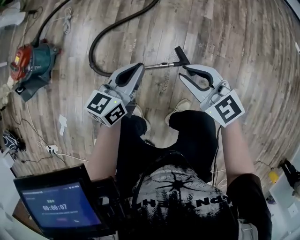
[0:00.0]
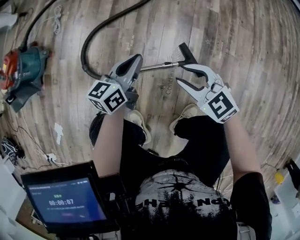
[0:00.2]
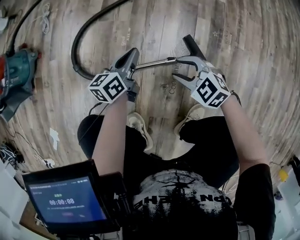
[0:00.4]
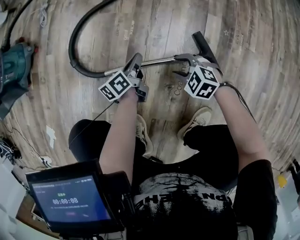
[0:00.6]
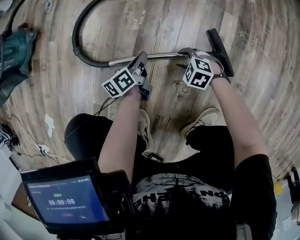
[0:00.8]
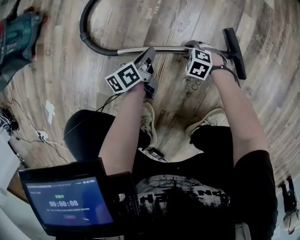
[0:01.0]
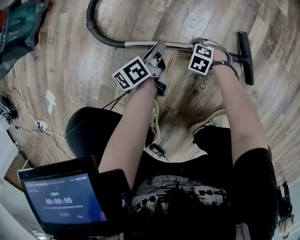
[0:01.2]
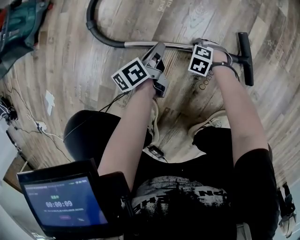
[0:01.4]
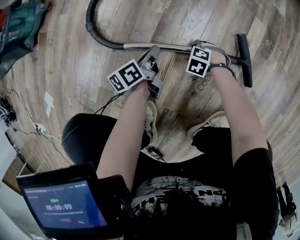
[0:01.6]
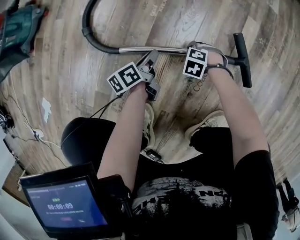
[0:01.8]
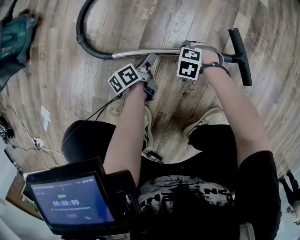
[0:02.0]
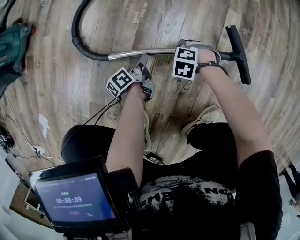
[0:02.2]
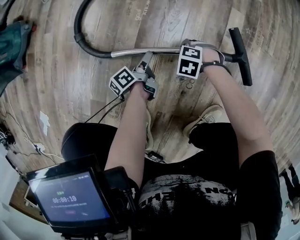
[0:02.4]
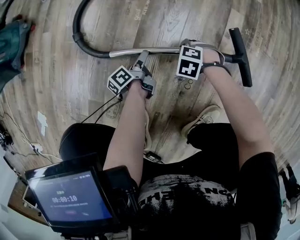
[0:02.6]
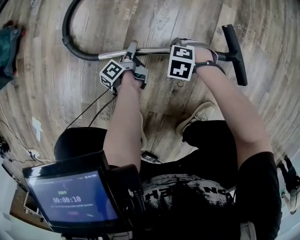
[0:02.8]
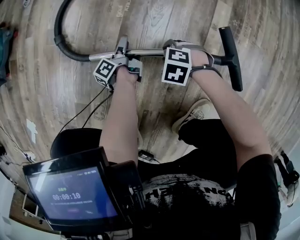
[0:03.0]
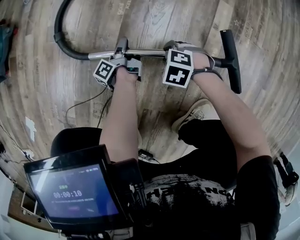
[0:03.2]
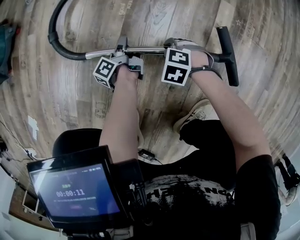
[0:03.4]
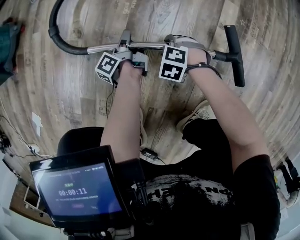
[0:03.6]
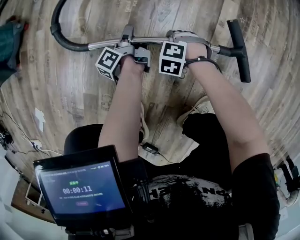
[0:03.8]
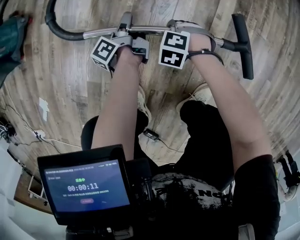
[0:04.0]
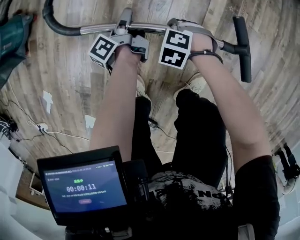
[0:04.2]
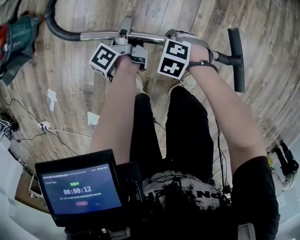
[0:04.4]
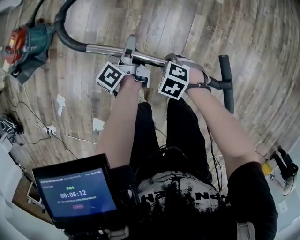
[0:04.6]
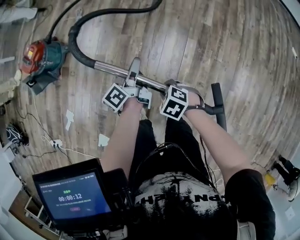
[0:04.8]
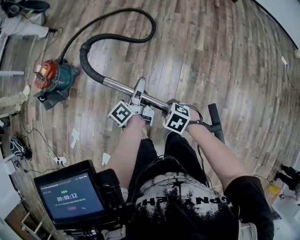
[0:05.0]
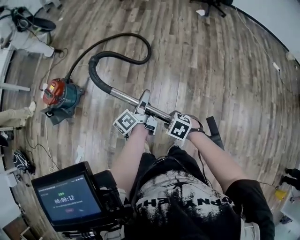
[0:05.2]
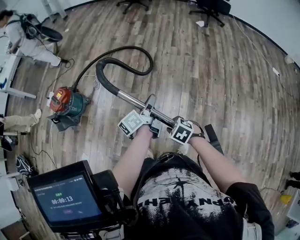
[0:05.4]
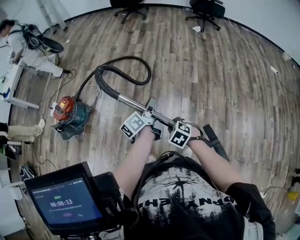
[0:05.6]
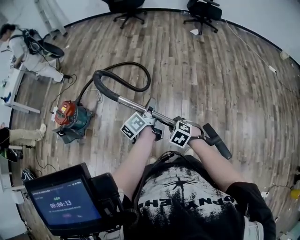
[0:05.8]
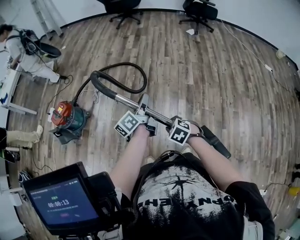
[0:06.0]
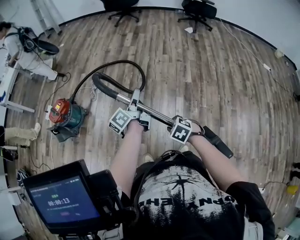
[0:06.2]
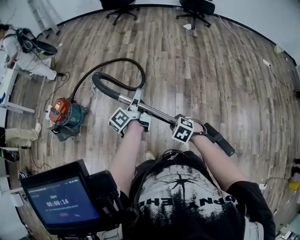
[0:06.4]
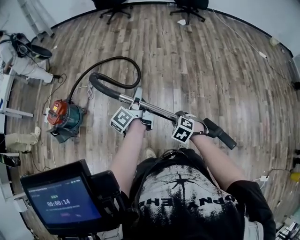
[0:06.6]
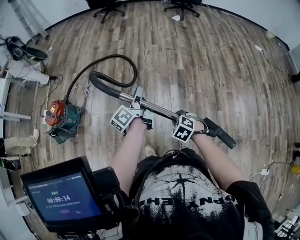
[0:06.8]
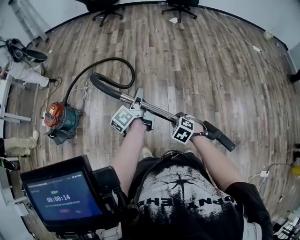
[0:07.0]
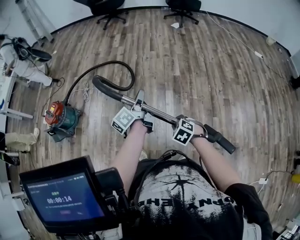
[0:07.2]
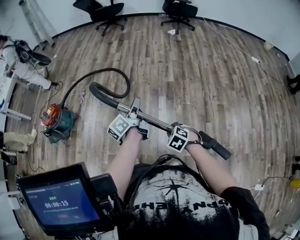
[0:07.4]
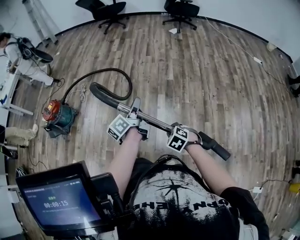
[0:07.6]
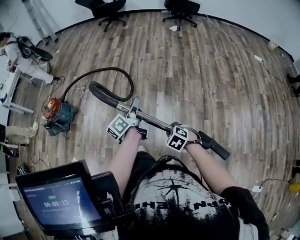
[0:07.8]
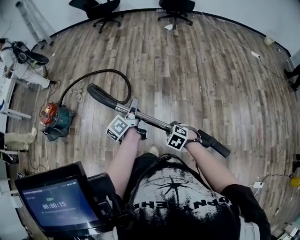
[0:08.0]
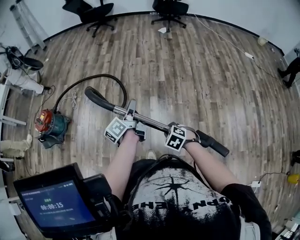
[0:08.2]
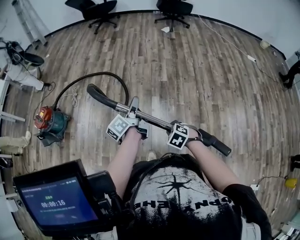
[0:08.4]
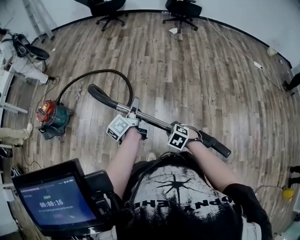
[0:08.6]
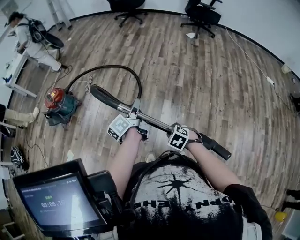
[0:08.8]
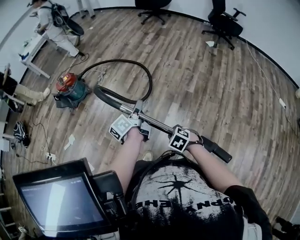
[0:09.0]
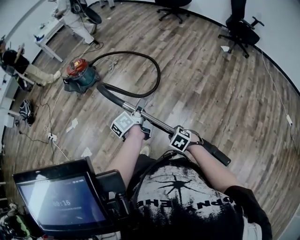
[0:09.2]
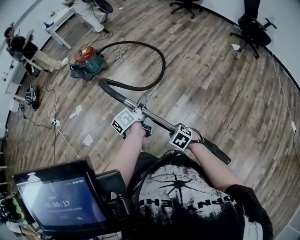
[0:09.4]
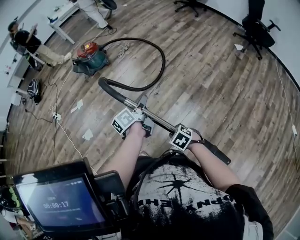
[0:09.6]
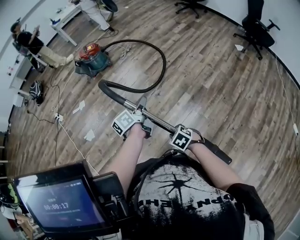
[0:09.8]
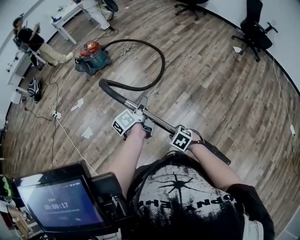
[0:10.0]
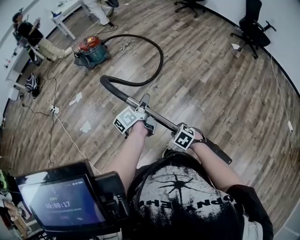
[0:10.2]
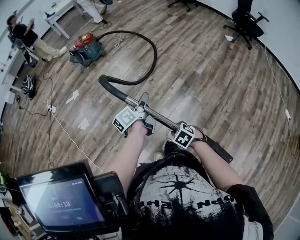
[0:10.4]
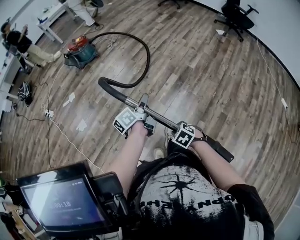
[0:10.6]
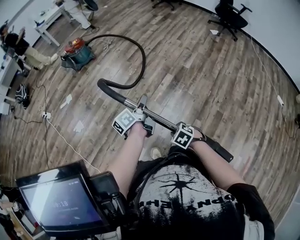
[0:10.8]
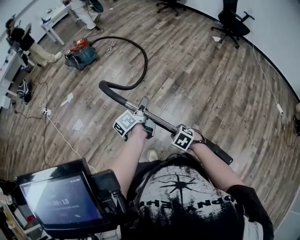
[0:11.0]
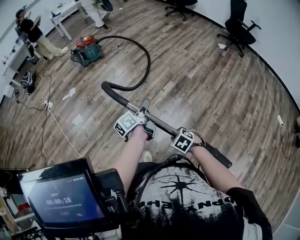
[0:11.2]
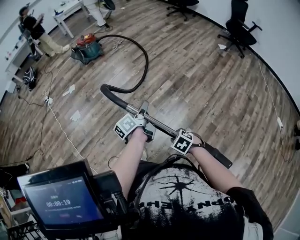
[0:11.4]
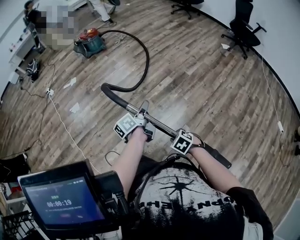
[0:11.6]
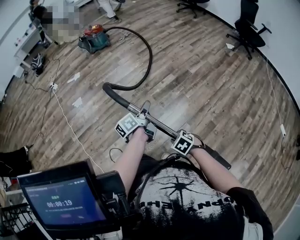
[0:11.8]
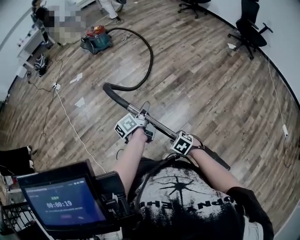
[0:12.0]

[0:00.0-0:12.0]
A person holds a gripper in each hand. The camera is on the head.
0:00.0 to 0:01.6: Both grippers travel together downward, approximately 60 cm. The left gripper twists about 50 degrees counterclockwise, seen from behind; the right gripper angles its fingers downward, by approximately 60 degrees, and opens.
0:01.6 to 0:03.0: The left gripper heads downward, covering about 10 cm, turns by some 40 degrees, and opens; the right gripper shifts roughly 10 cm upward.
0:03.0 to 0:04.4: Both grippers travel together upward, roughly 30 cm. The right gripper closes up. The left gripper closes its fingers.
0:04.4 to 0:06.0: Both grippers travel together upward, roughly 50 cm. The left gripper swivels roughly 30 degrees; the right gripper rotates roughly 30 degrees.
0:06.0 to 0:07.6: Both grippers move to the right and backward, about 25 cm.
0:07.6 to 0:09.0: The right gripper ends up some 10 cm from where it was, and changes its angle by roughly 20 degrees. Meanwhile the left gripper turns by roughly 20 degrees.
0:09.0 to 0:10.4: Both grippers travel together backward, some 25 cm.
0:10.4 to 0:12.0: The left gripper shifts approximately 30 cm backward. Meanwhile the right gripper is displaced backward and to the right by roughly 30 cm.

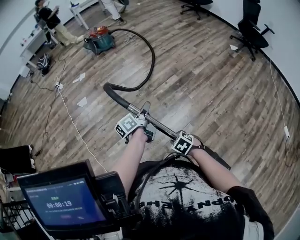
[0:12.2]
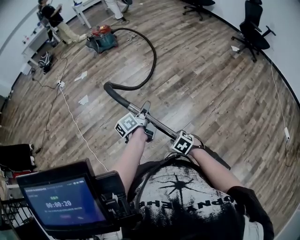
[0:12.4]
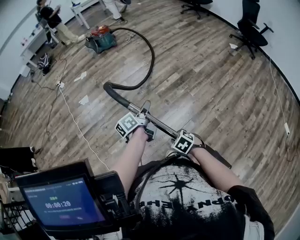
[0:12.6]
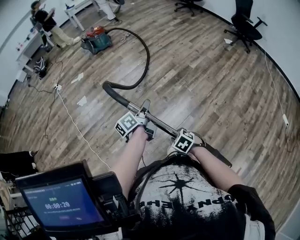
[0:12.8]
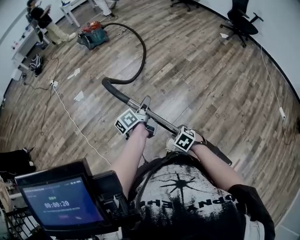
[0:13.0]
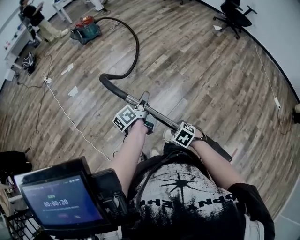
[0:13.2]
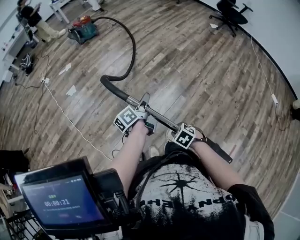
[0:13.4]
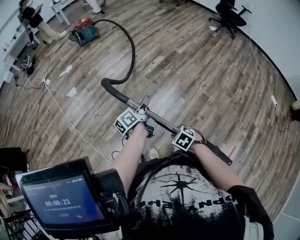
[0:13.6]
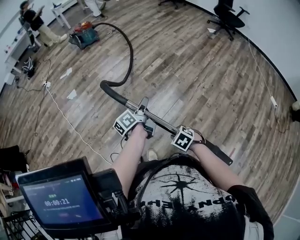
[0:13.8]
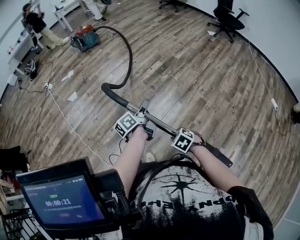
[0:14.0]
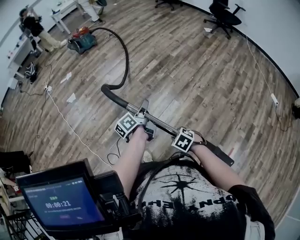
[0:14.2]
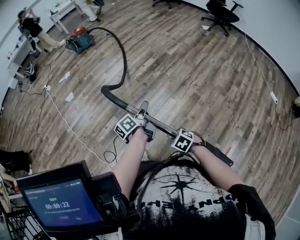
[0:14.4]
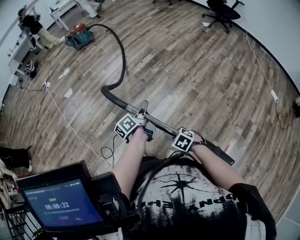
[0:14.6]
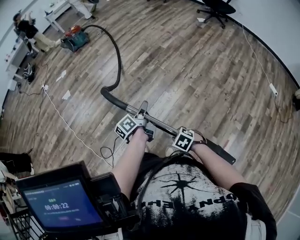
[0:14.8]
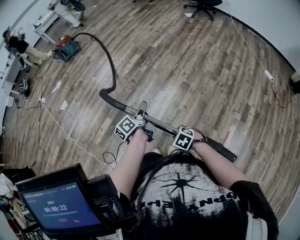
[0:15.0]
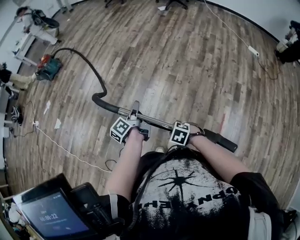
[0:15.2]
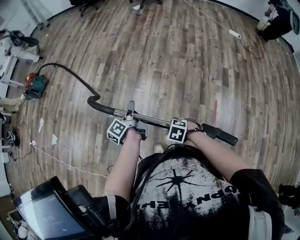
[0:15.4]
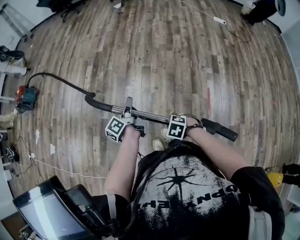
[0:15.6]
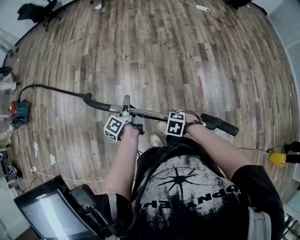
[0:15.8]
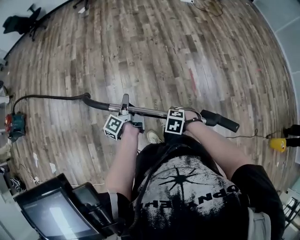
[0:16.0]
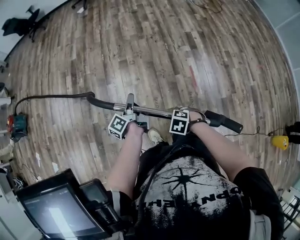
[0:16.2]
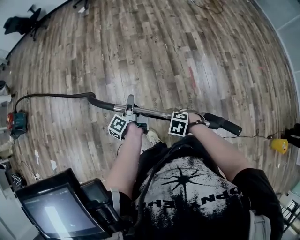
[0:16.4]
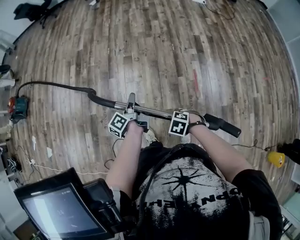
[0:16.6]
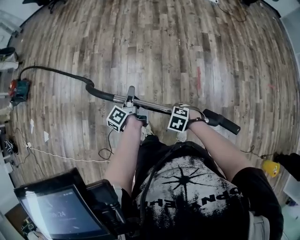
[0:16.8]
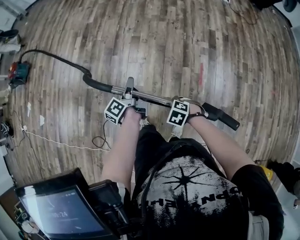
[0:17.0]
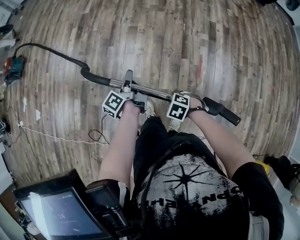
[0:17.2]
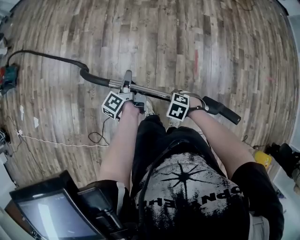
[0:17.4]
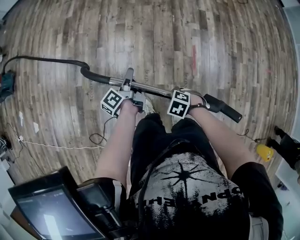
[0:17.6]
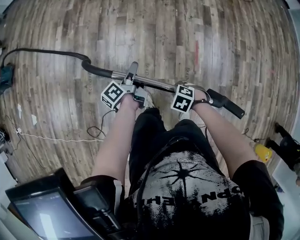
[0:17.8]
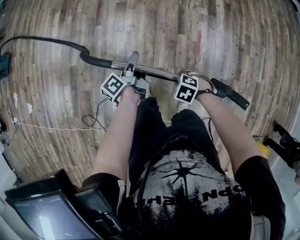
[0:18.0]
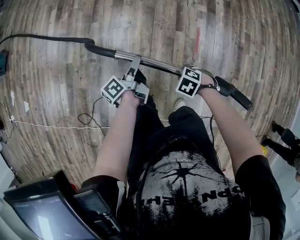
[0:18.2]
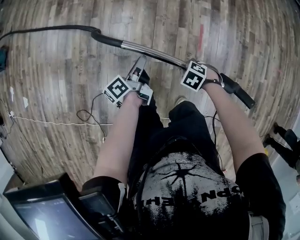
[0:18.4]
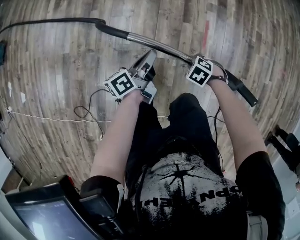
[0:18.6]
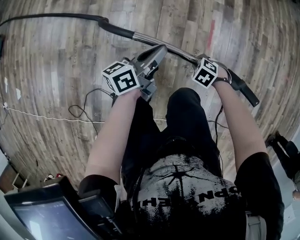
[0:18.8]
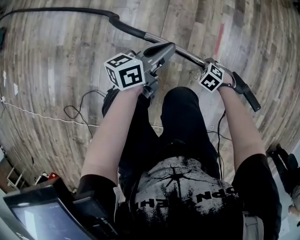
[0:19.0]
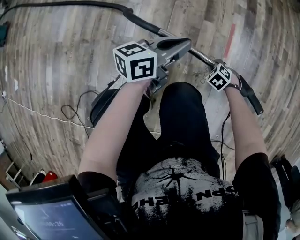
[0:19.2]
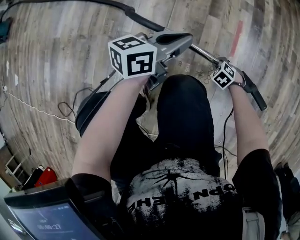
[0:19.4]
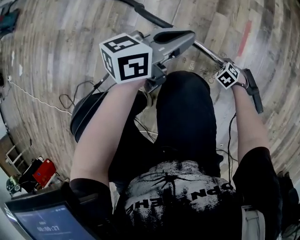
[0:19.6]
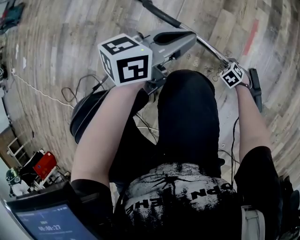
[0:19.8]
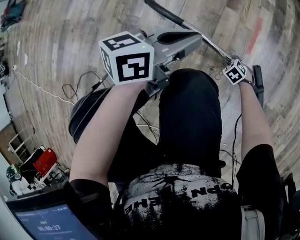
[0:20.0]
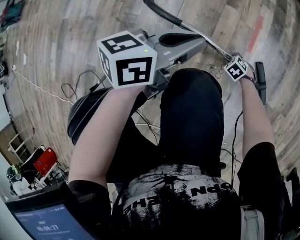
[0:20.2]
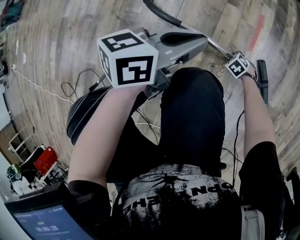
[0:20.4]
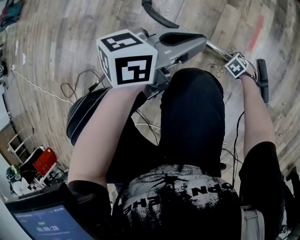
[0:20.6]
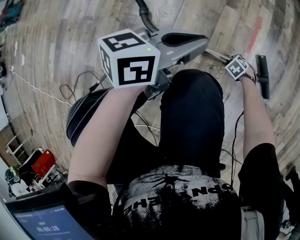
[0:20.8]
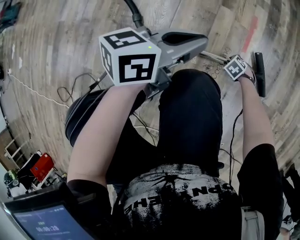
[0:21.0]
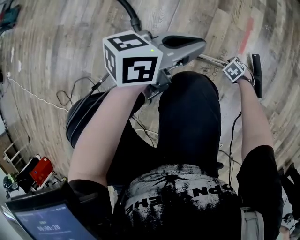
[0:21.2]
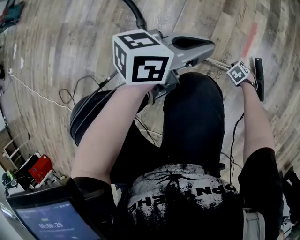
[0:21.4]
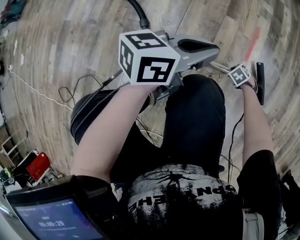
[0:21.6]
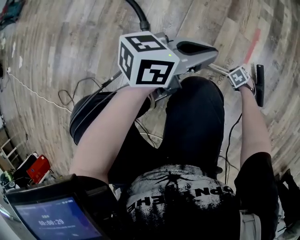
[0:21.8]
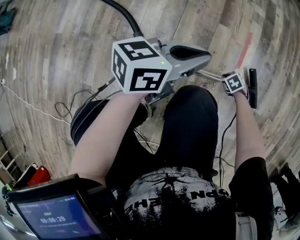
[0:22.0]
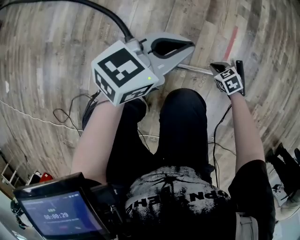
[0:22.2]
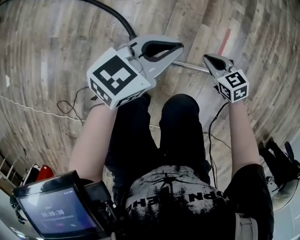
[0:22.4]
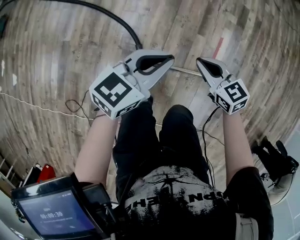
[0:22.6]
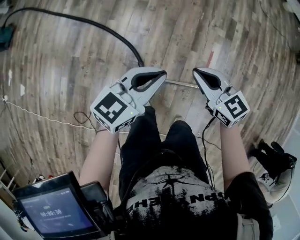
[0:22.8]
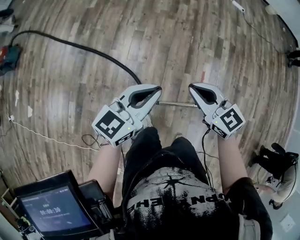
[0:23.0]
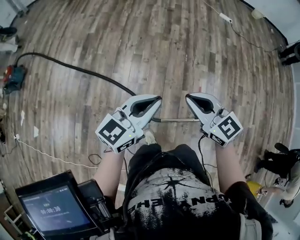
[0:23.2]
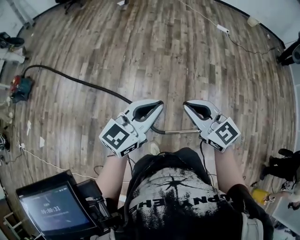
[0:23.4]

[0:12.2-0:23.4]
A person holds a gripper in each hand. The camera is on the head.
0:12.2 to 0:13.8: The left gripper goes roughly 20 cm backward. Meanwhile the right gripper goes some 20 cm backward and to the left.
0:13.8 to 0:15.4: Both grippers travel together to the right and backward, approximately 30 cm.
0:15.4 to 0:17.0: The left gripper ends up some 20 cm from where it was, while the right gripper shifts by some 20 cm.
0:17.0 to 0:18.6: Both grippers travel together downward, some 20 cm. The left gripper changes its angle by approximately 30 degrees, and opens, then closes again.
0:18.6 to 0:20.2: The left gripper heads downward, covering roughly 20 cm, and rotates roughly 40 degrees, while the right gripper is displaced downward by about 50 cm.
0:20.2 to 0:21.8: The right gripper closes up.
0:21.8 to 0:23.4: The right gripper heads upward, covering approximately 1 m, and tips its fingers upward by about 70 degrees, while the left gripper shifts some 60 cm upward, and changes its angle by some 40 degrees.
